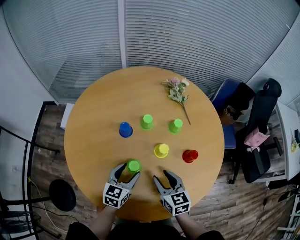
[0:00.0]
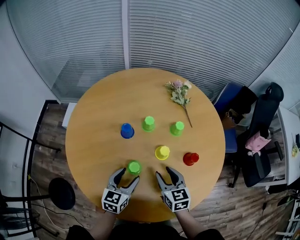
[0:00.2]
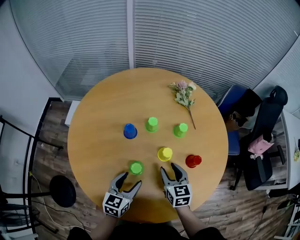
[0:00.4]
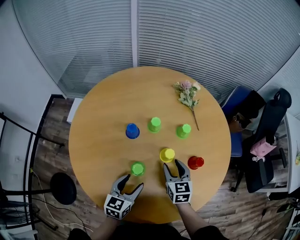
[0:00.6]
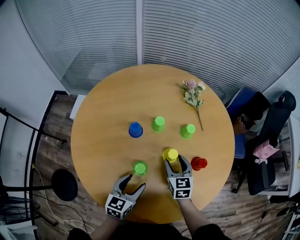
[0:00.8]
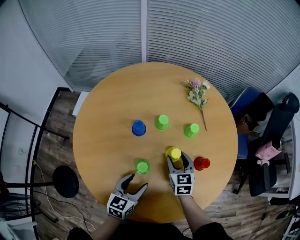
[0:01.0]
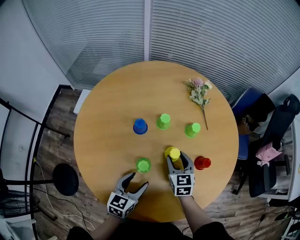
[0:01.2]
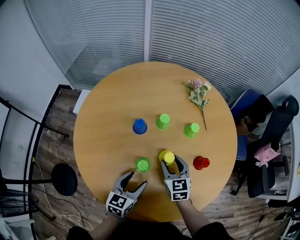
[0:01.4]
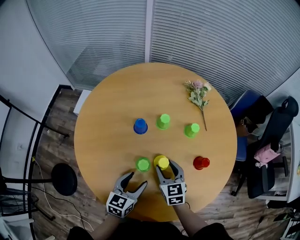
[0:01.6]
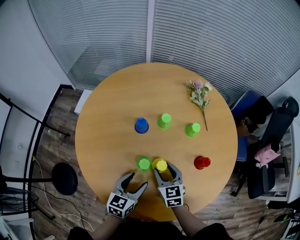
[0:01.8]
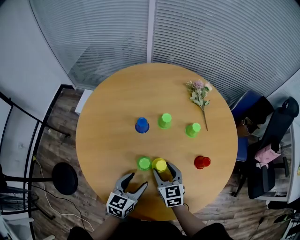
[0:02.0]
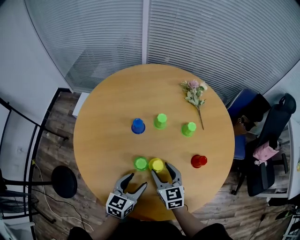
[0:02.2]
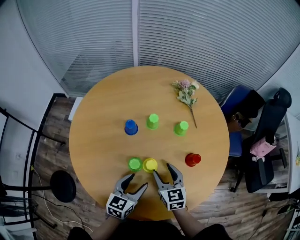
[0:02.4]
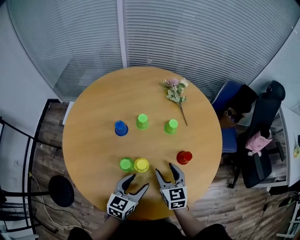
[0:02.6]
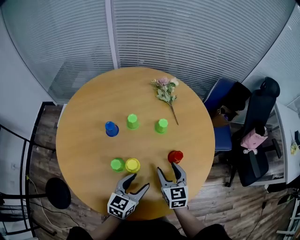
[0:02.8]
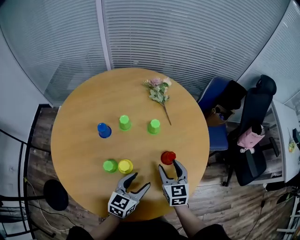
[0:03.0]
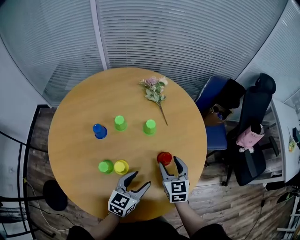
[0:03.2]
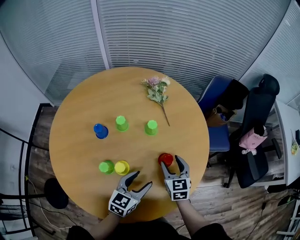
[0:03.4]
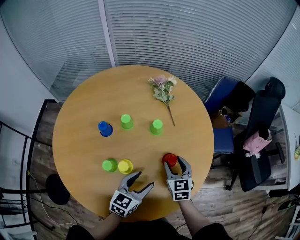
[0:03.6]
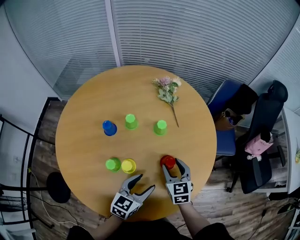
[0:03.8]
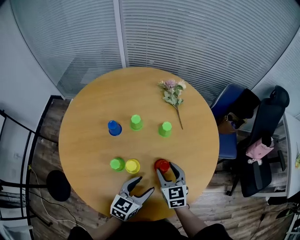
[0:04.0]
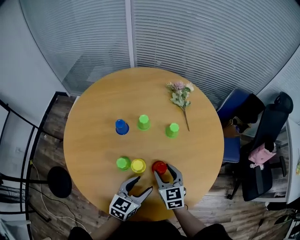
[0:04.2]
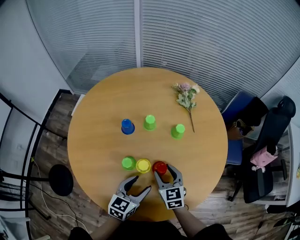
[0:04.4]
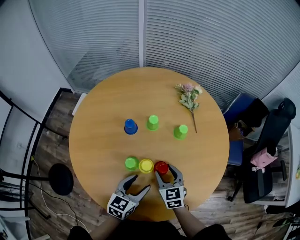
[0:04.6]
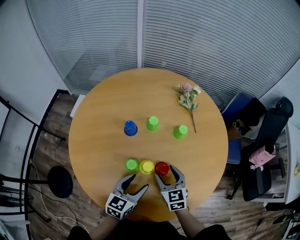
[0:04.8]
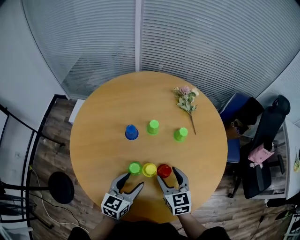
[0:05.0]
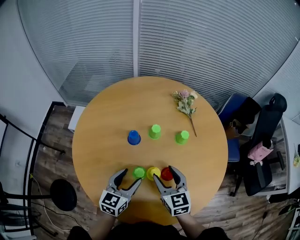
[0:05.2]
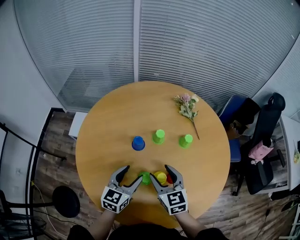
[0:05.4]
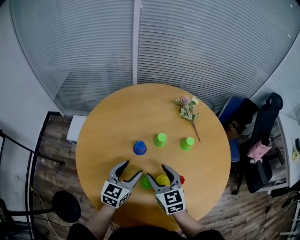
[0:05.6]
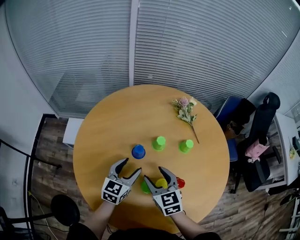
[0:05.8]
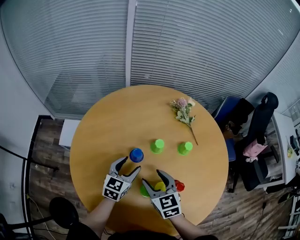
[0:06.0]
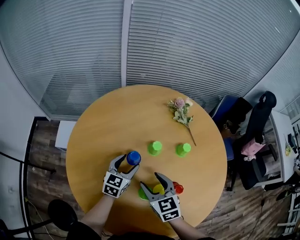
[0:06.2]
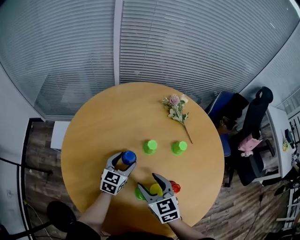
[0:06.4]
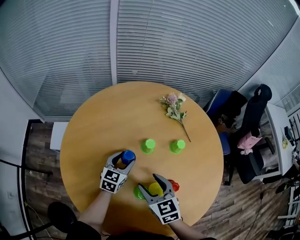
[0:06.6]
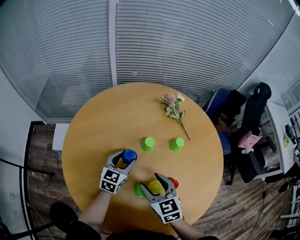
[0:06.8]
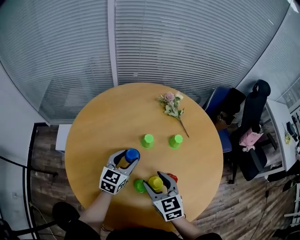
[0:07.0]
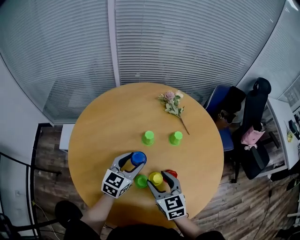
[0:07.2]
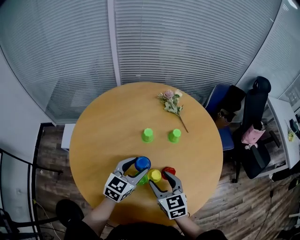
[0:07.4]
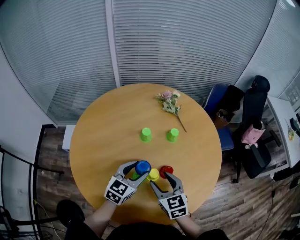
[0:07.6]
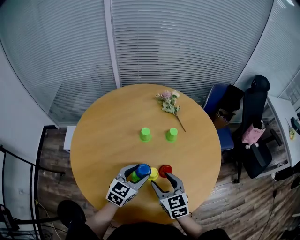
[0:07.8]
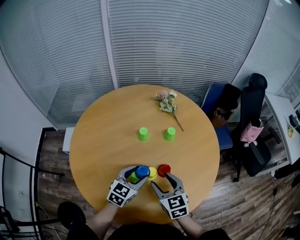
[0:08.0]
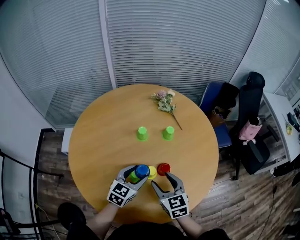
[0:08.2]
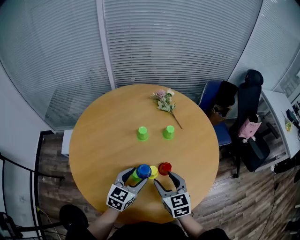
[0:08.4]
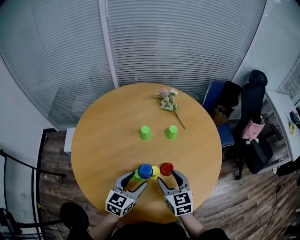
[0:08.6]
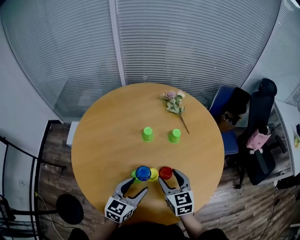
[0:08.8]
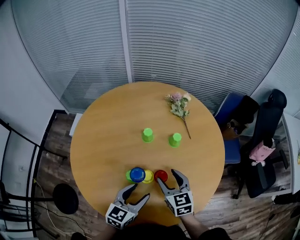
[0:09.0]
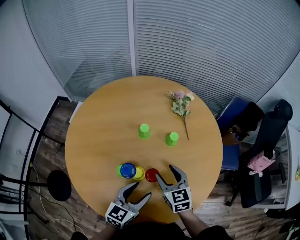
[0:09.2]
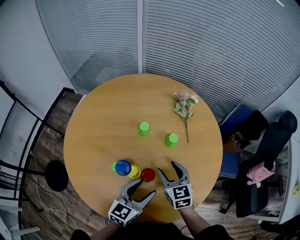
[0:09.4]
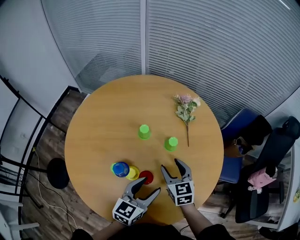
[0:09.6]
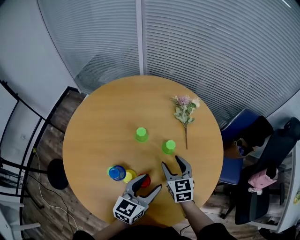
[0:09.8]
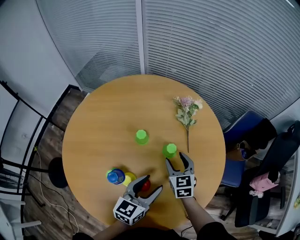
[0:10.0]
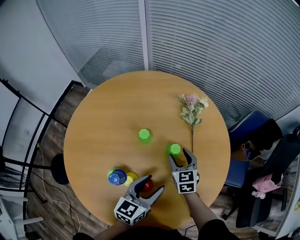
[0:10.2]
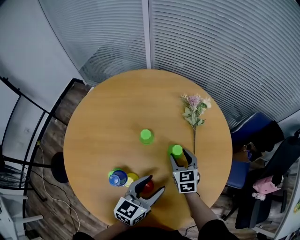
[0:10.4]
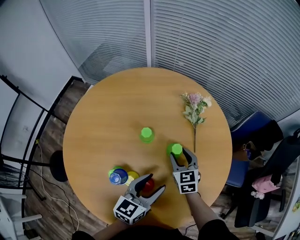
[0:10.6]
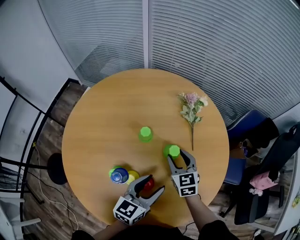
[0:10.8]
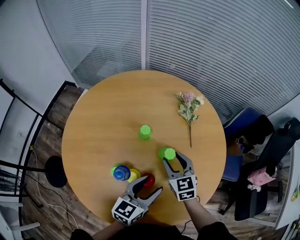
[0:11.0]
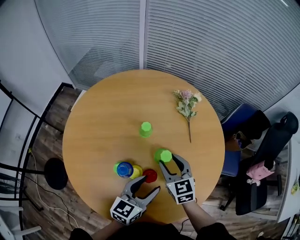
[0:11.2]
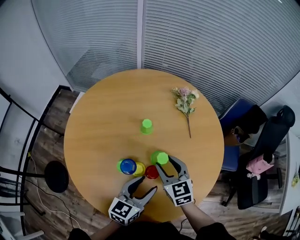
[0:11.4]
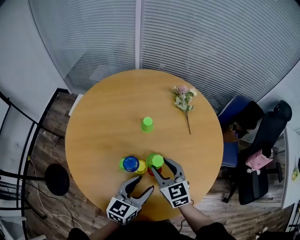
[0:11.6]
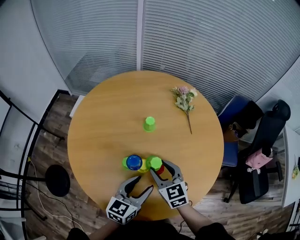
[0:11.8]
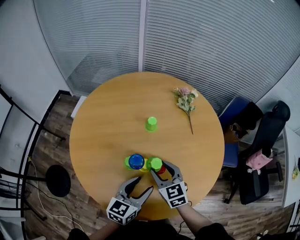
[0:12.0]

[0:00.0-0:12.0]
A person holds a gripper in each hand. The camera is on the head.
0:00.0 to 0:01.6: The right gripper goes some 5 cm forward.
0:01.6 to 0:03.0: Both grippers move to the right, approximately 15 cm.
0:03.0 to 0:04.4: The right gripper heads to the left, covering about 10 cm. The left gripper moves to the left, approximately 5 cm.
0:04.4 to 0:06.0: The right gripper travels to the left by roughly 15 cm. The left gripper moves forward and to the left, roughly 25 cm.
0:06.0 to 0:07.6: The left gripper goes approximately 15 cm to the right, backward and upward, while the right gripper moves to the right and backward, about 15 cm.
0:07.6 to 0:09.0: The left gripper travels backward and to the right by some 10 cm. The right gripper moves to the right, about 5 cm.
0:09.0 to 0:10.4: The right gripper shifts approximately 20 cm forward, downward and to the right; the left gripper moves to the right and forward, some 15 cm.
0:10.4 to 0:12.0: The left gripper is displaced backward and to the left by approximately 15 cm. The right gripper travels backward, to the left and upward by roughly 25 cm.

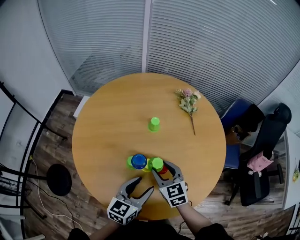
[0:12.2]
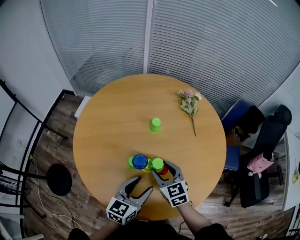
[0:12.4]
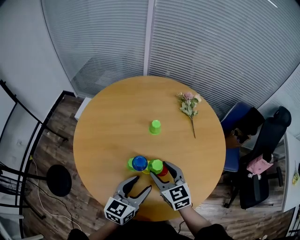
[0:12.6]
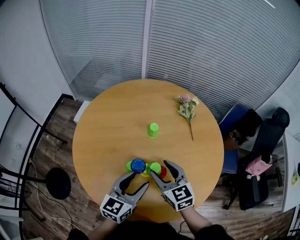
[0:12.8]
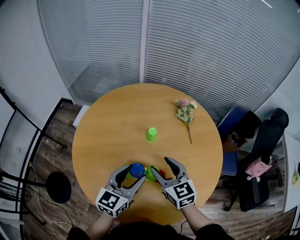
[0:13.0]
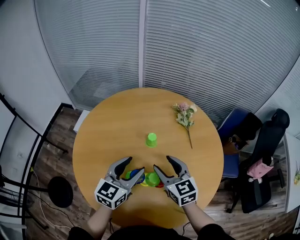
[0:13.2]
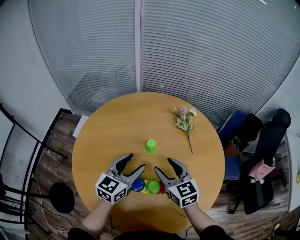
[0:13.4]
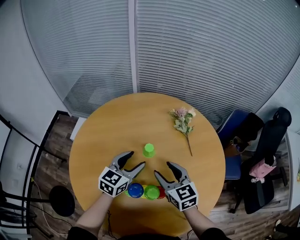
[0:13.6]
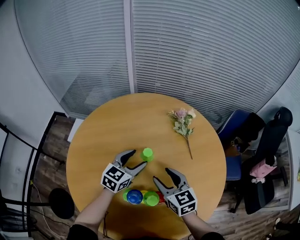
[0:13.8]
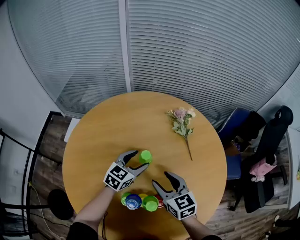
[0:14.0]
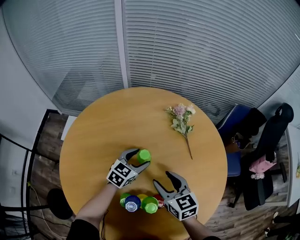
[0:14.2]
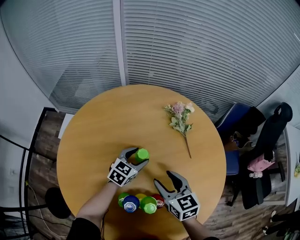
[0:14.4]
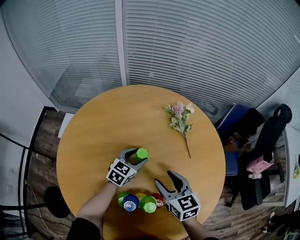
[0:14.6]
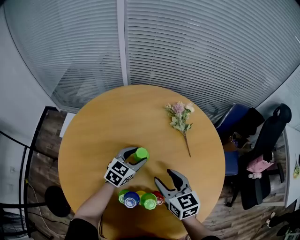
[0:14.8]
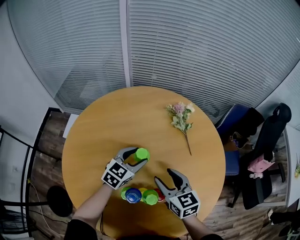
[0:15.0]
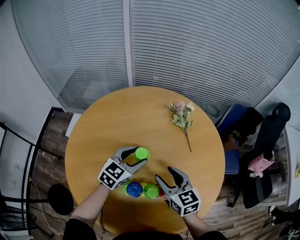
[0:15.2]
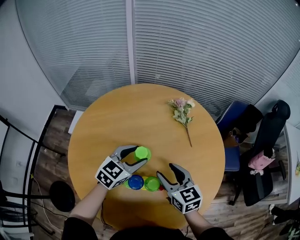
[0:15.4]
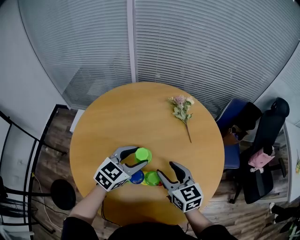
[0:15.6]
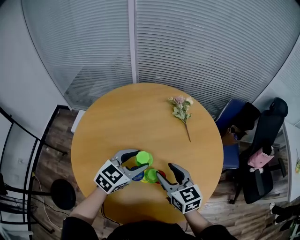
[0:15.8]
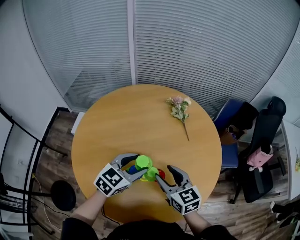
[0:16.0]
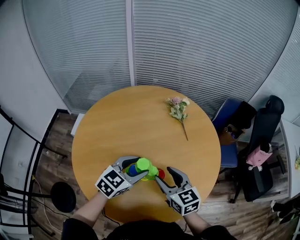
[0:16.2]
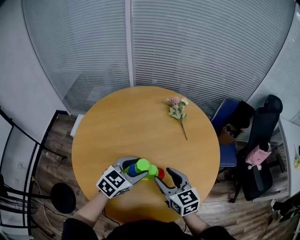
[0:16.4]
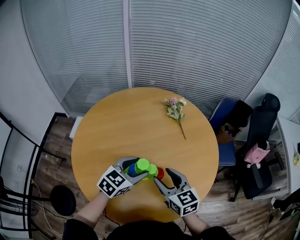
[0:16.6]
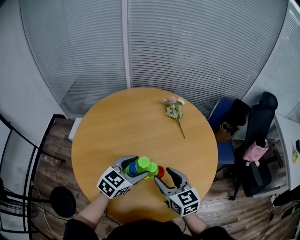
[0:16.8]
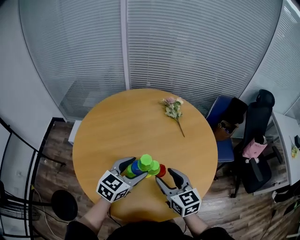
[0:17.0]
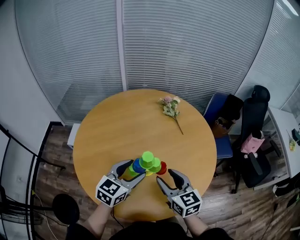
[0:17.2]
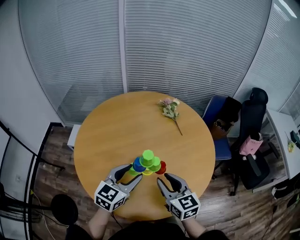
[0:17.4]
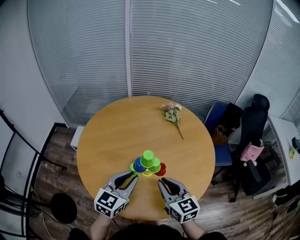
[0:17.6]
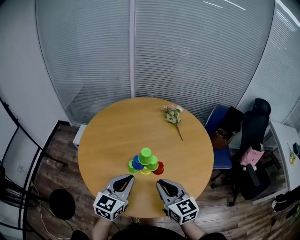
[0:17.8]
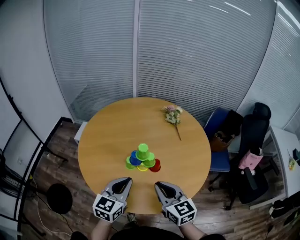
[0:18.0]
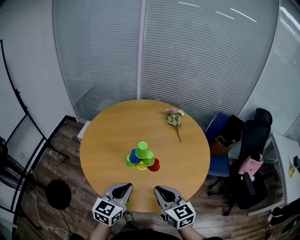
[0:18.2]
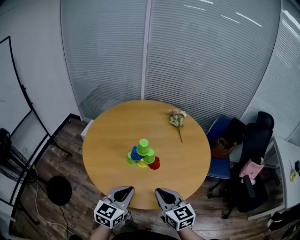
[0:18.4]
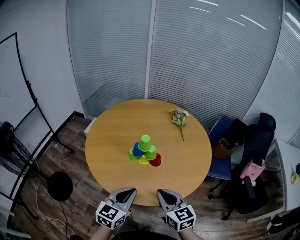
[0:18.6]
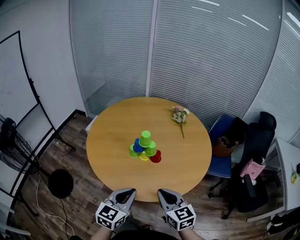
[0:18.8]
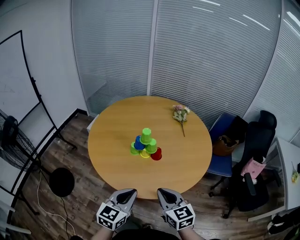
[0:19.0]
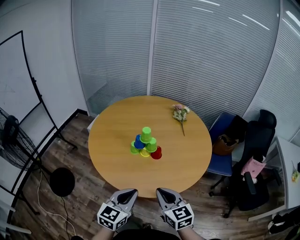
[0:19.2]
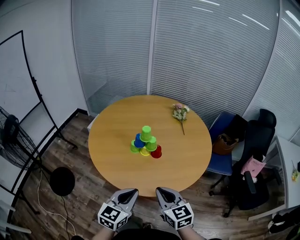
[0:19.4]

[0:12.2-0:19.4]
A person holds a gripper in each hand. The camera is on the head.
0:12.2 to 0:13.6: The left gripper goes some 25 cm forward; the right gripper is displaced forward and upward by some 15 cm.
0:13.6 to 0:15.0: The left gripper goes about 5 cm downward.
0:15.0 to 0:16.6: The left gripper moves backward and upward, approximately 20 cm. The right gripper travels backward by approximately 15 cm.
0:16.6 to 0:18.0: The two grippers go some 15 cm backward. The left gripper turns by approximately 30 degrees, and closes. Meanwhile the right gripper closes up.
0:18.0 to 0:19.4: The grippers both shift backward by some 15 cm.

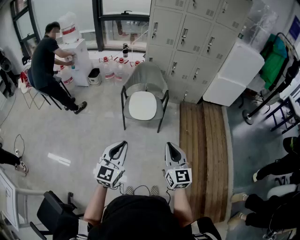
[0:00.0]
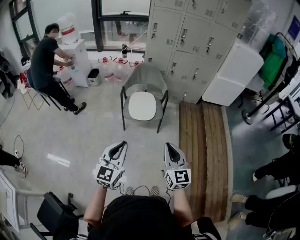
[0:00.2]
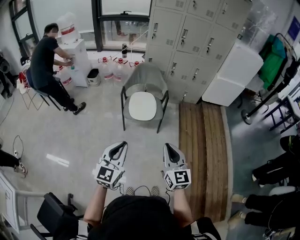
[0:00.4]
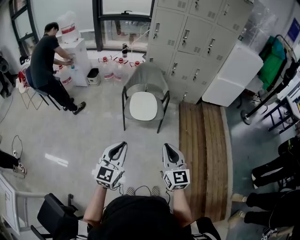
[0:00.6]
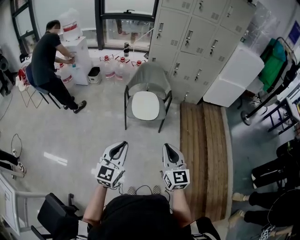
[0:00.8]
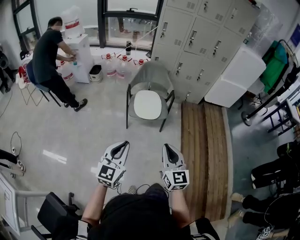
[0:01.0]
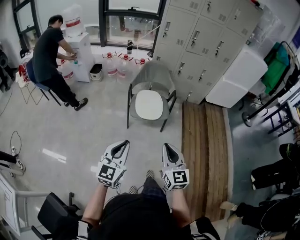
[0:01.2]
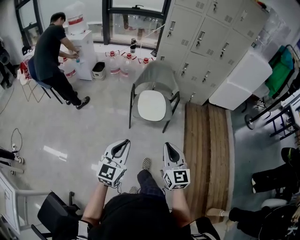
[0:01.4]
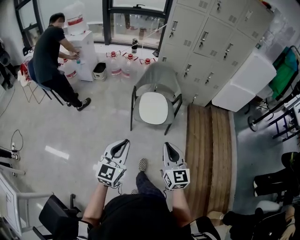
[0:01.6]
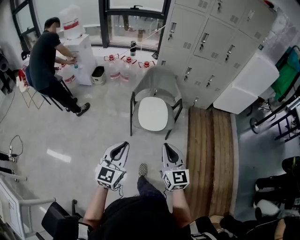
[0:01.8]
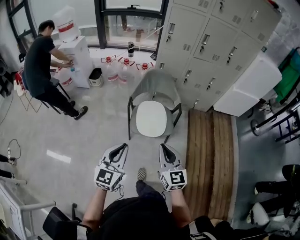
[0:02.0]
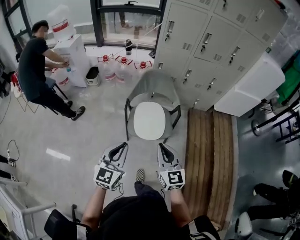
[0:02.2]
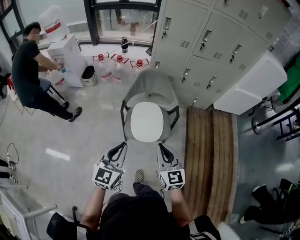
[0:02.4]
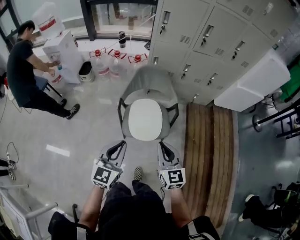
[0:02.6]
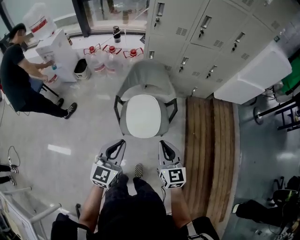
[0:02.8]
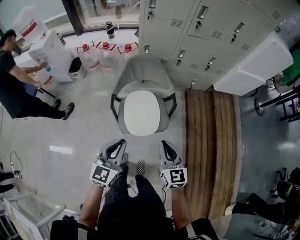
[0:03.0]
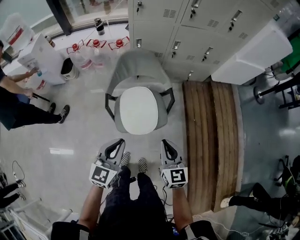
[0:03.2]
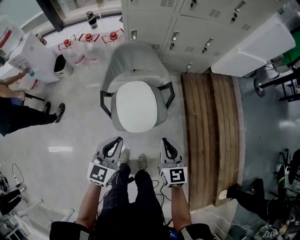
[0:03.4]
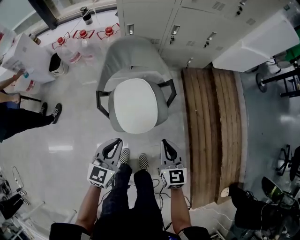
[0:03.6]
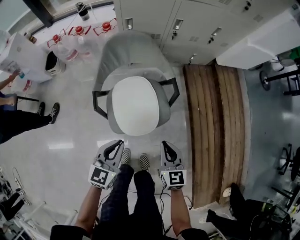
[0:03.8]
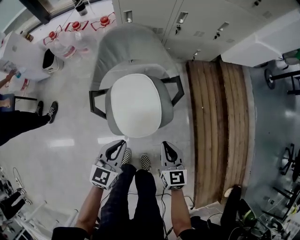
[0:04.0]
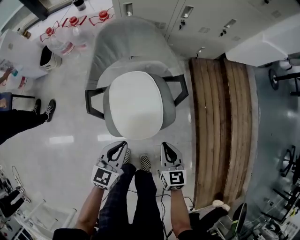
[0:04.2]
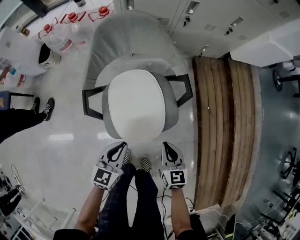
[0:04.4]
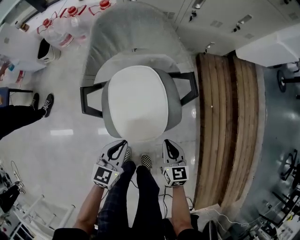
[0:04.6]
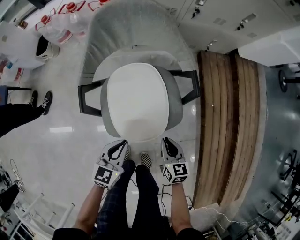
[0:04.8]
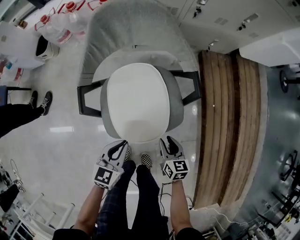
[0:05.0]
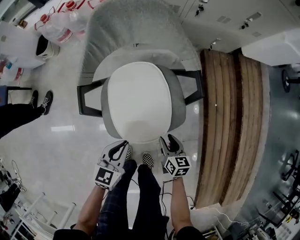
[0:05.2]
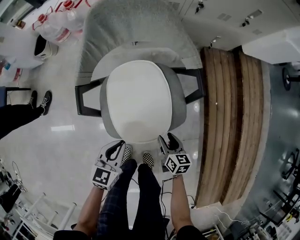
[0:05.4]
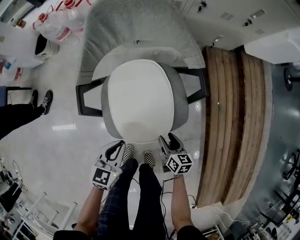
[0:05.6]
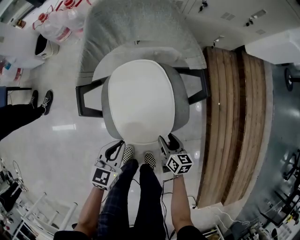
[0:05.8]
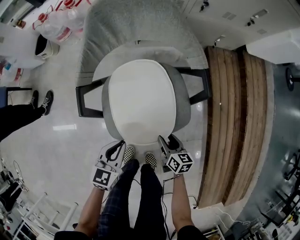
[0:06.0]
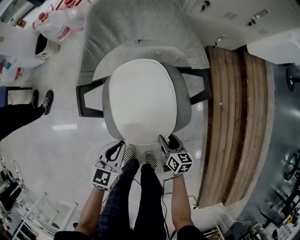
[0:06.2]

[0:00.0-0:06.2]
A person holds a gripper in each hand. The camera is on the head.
0:00.0 to 0:01.6: Both grippers move to the left and forward, roughly 15 cm.
0:01.6 to 0:03.2: Both grippers move forward, approximately 40 cm.
0:03.2 to 0:04.6: The grippers both shift downward by approximately 35 cm.
0:04.6 to 0:06.2: The right gripper shifts roughly 15 cm downward, swivels roughly 20 degrees, and opens up. The left gripper moves downward, roughly 5 cm.
